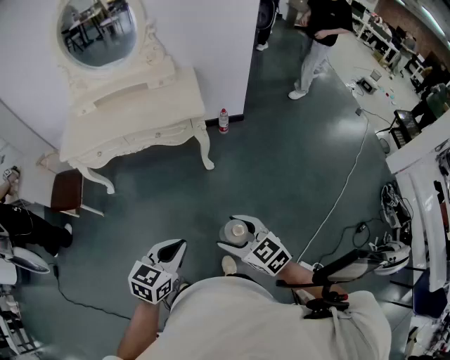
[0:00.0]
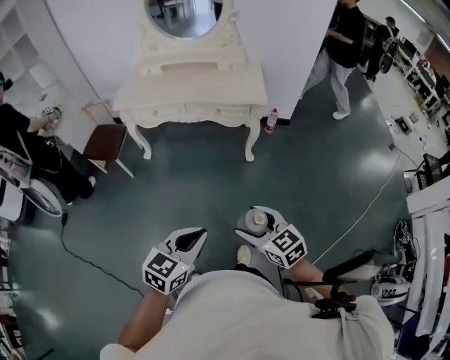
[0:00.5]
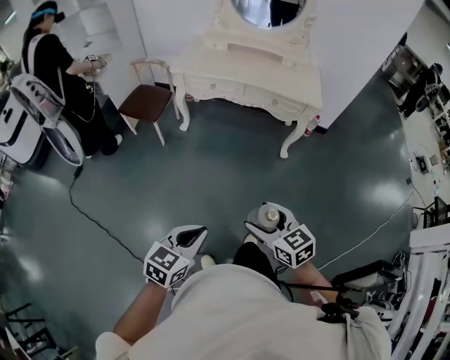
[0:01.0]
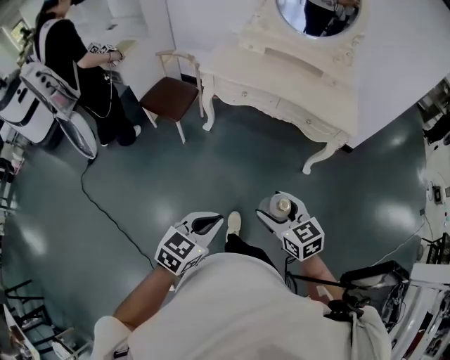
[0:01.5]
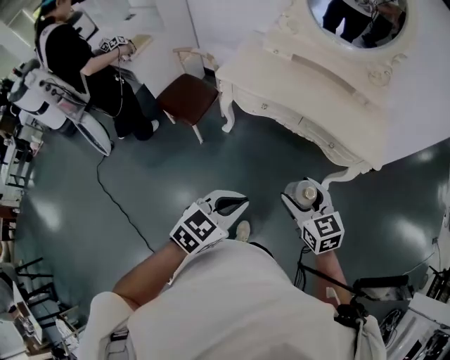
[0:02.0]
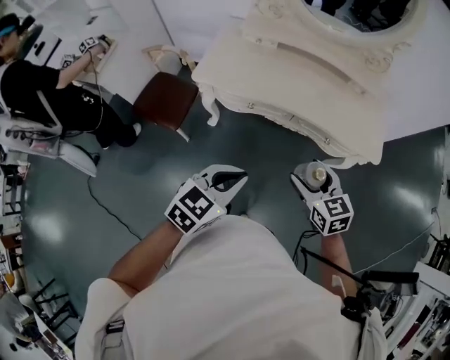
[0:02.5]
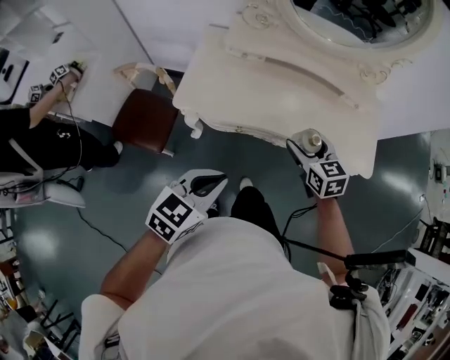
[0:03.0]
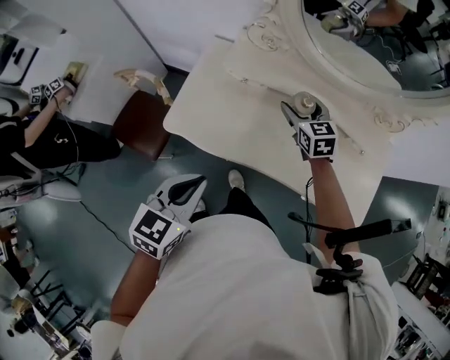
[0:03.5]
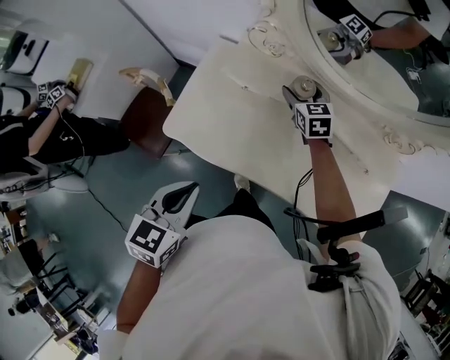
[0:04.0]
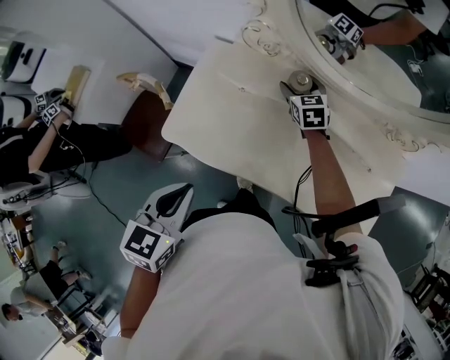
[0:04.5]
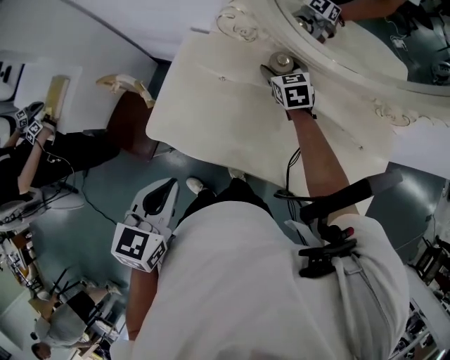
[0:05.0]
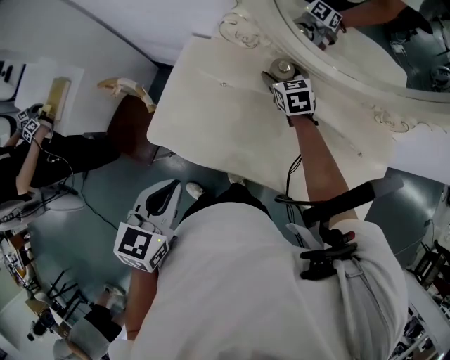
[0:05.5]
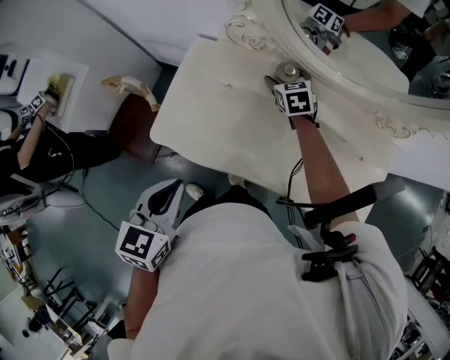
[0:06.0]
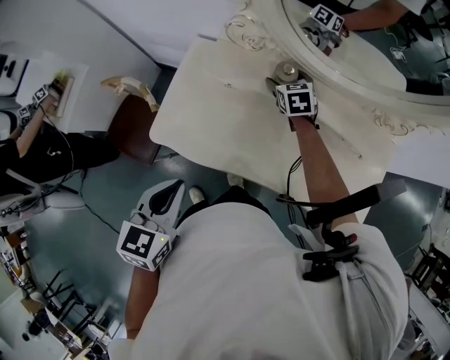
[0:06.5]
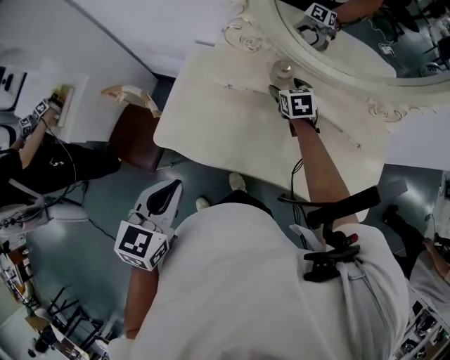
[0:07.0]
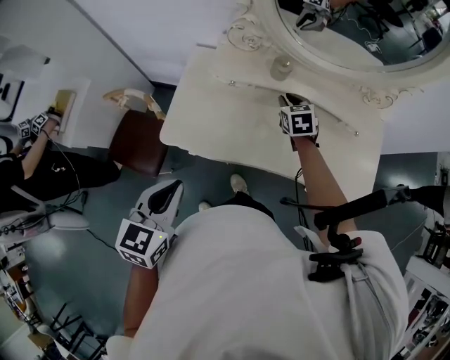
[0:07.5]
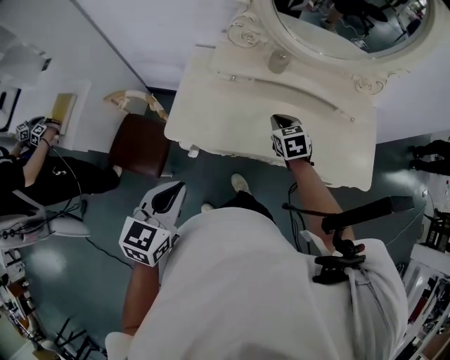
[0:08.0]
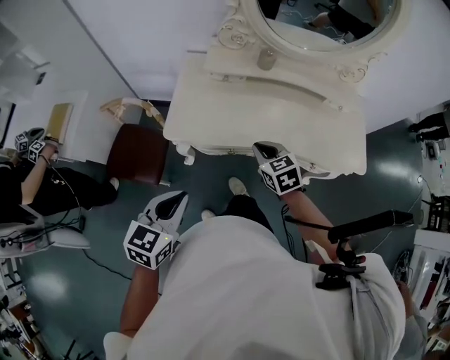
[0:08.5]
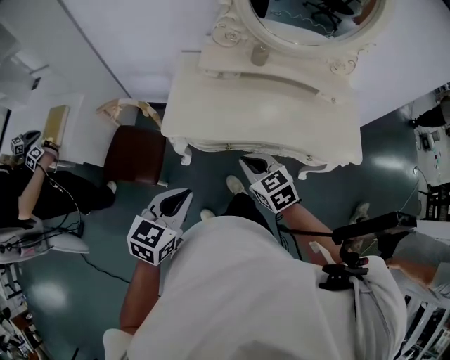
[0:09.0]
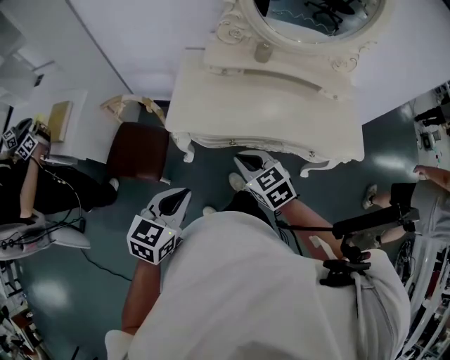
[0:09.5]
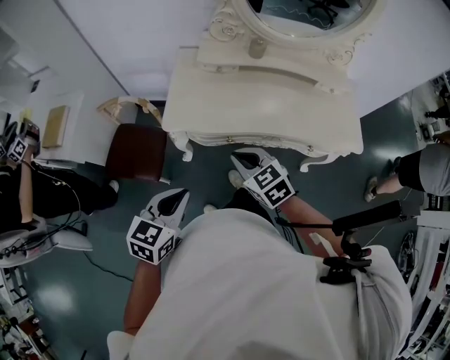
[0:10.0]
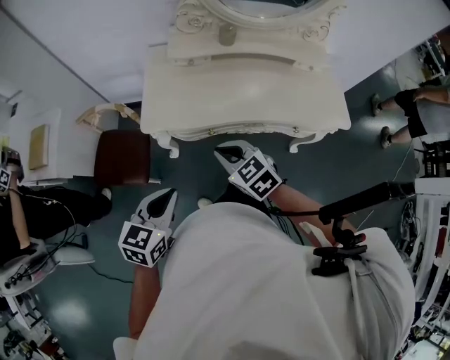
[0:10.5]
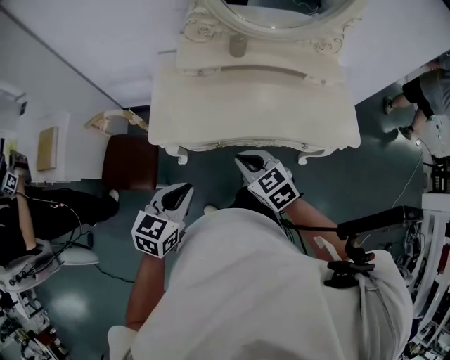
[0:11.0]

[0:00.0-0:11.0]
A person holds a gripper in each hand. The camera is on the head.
0:00.0 to 0:02.0: Both grippers are carried to the left and forward, about 40 cm.
0:02.0 to 0:03.5: Both grippers are carried forward, roughly 60 cm.
0:03.5 to 0:05.5: The right gripper shifts about 15 cm forward and downward; the left gripper travels forward by some 5 cm.
0:05.5 to 0:07.5: The left gripper is displaced backward and to the left by some 10 cm. The right gripper travels backward by about 15 cm, and closes.
0:07.5 to 0:09.0: The left gripper travels backward by approximately 15 cm. Meanwhile the right gripper travels backward by approximately 40 cm.
0:09.0 to 0:11.0: The left gripper moves approximately 5 cm.

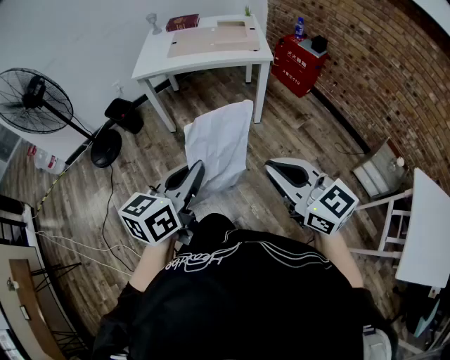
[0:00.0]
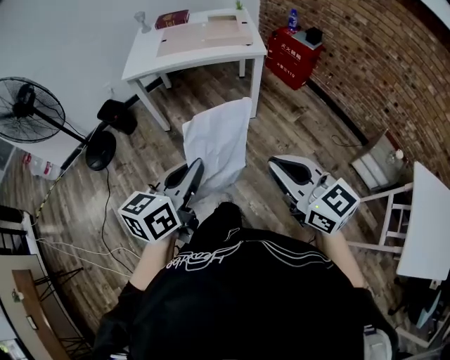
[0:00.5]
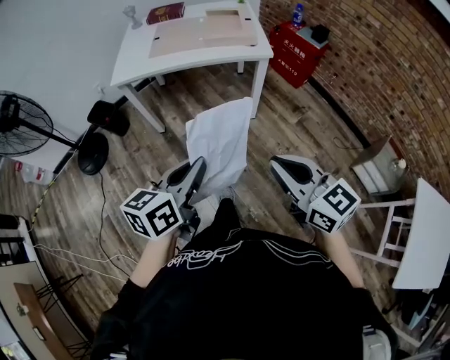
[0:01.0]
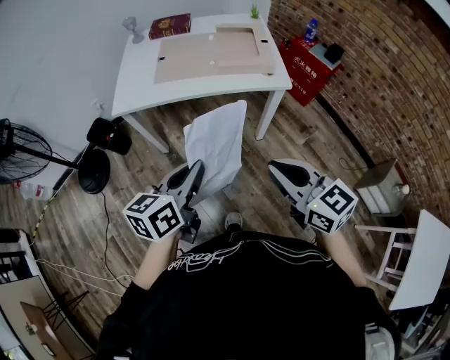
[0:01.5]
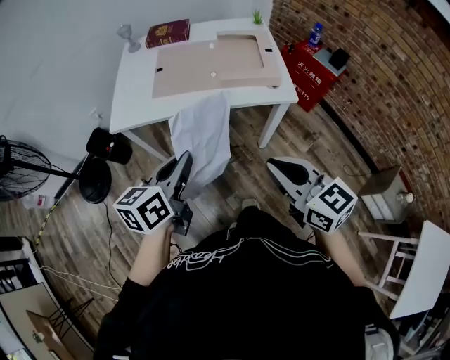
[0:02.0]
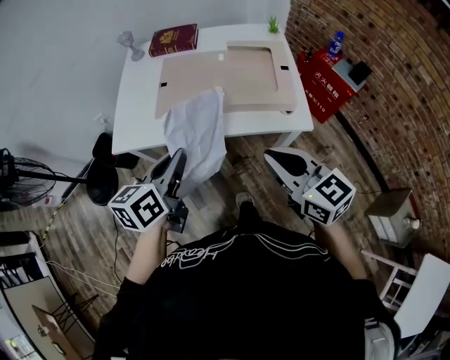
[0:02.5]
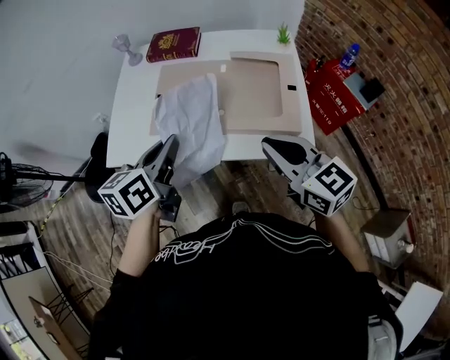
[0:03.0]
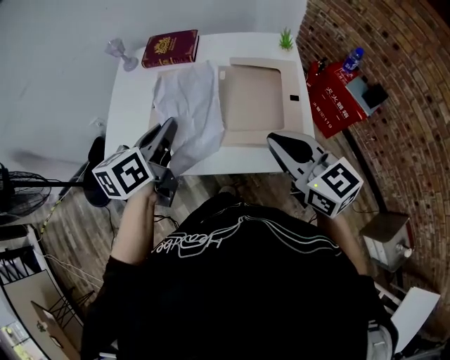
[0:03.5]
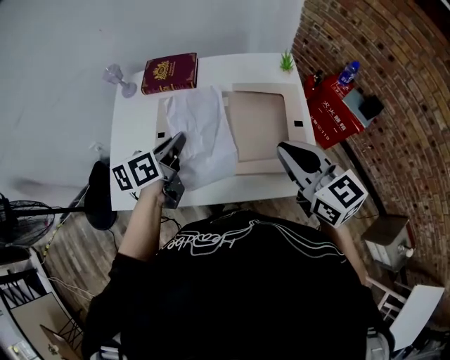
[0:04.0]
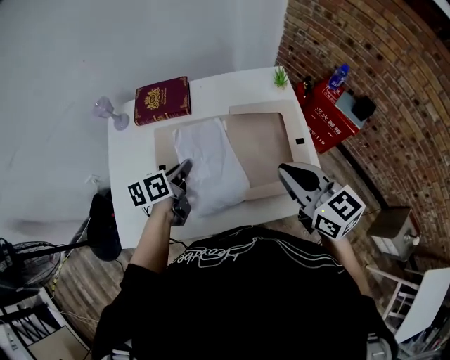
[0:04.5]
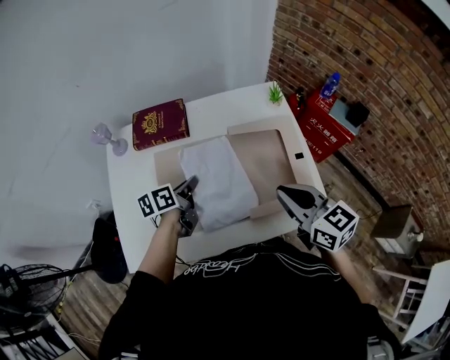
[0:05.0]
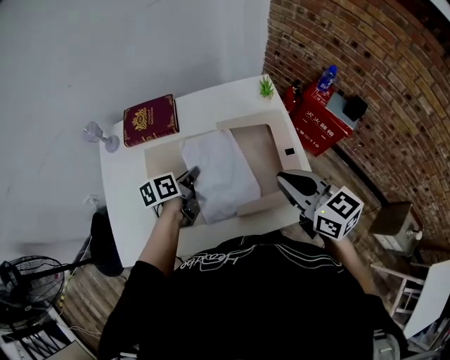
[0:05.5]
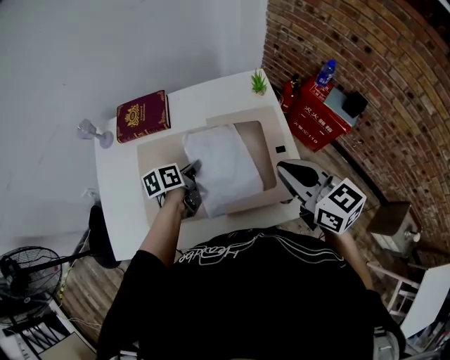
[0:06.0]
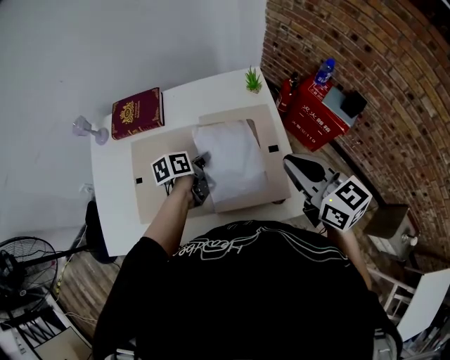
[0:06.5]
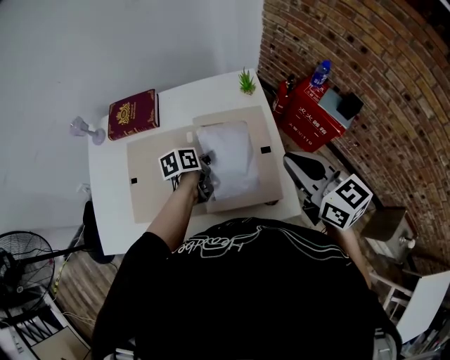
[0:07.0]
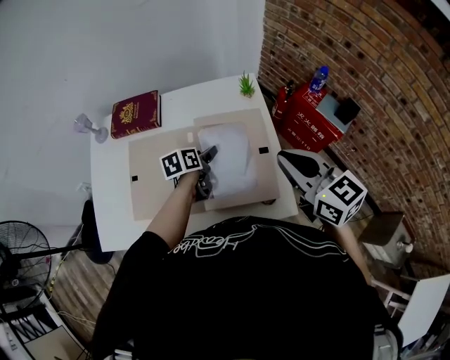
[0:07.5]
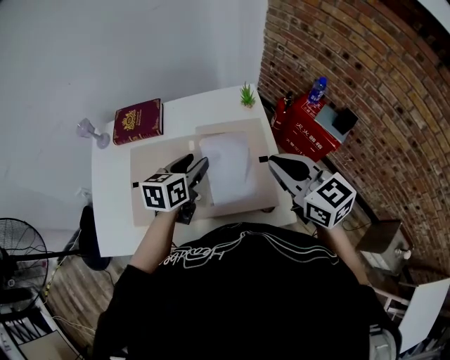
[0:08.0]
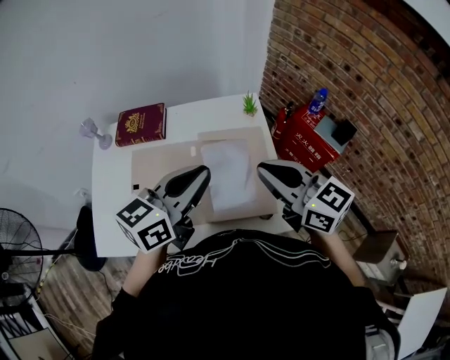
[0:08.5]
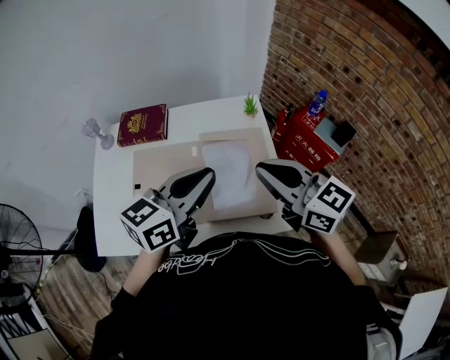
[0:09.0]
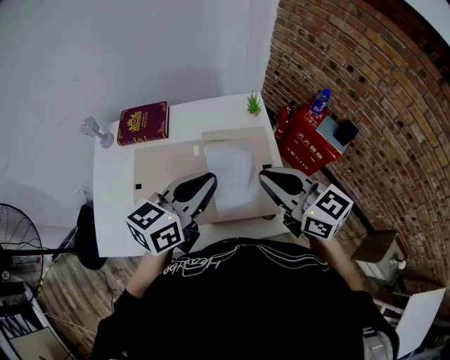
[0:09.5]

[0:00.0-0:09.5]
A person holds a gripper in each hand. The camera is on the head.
0:00.0 to 0:02.0: The two grippers go some 40 cm forward.
0:02.0 to 0:04.0: Both grippers move forward, about 40 cm.
0:04.0 to 0:05.5: The right gripper ends up approximately 5 cm from where it was, while the left gripper shifts approximately 15 cm downward and forward.
0:05.5 to 0:07.5: The grippers both shift to the right by about 10 cm. The left gripper opens its fingers.
0:07.5 to 0:09.5: The left gripper goes about 25 cm upward and backward, turns by about 40 degrees, and closes. Meanwhile the right gripper shifts some 5 cm to the left.

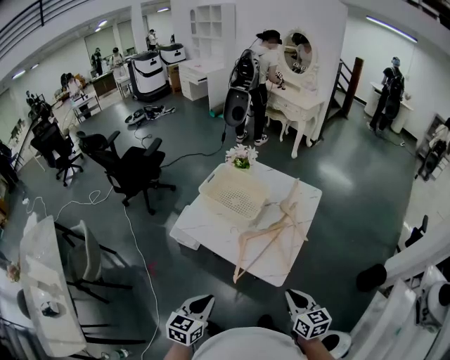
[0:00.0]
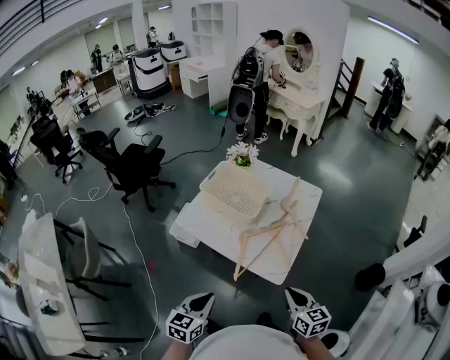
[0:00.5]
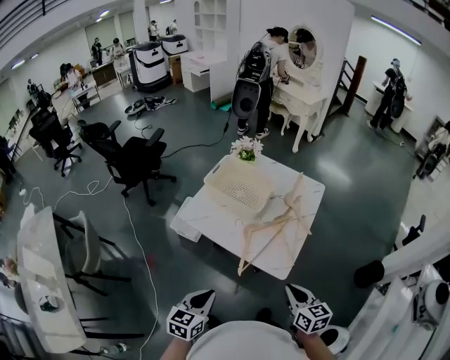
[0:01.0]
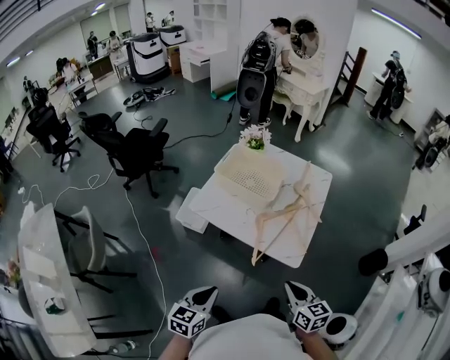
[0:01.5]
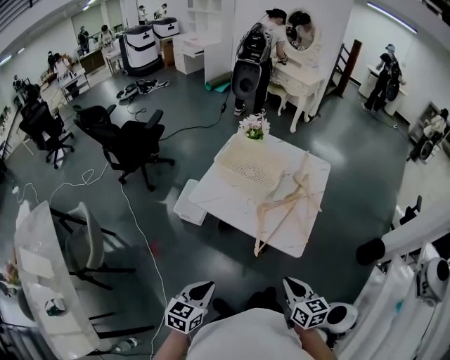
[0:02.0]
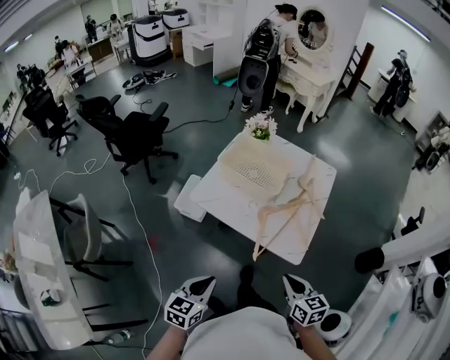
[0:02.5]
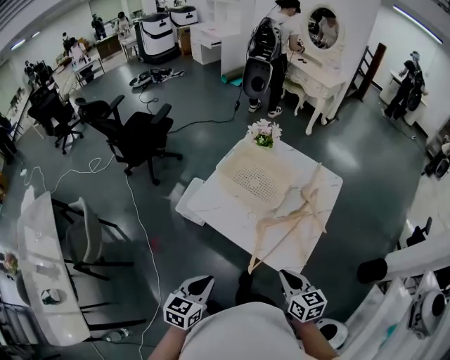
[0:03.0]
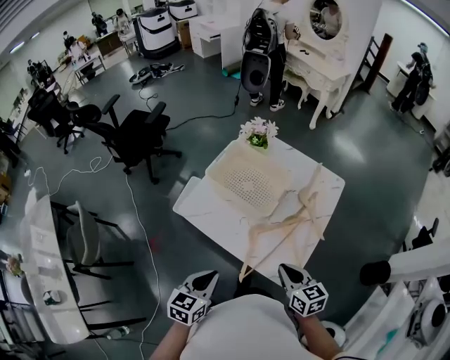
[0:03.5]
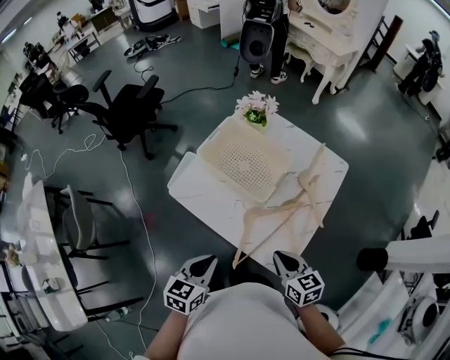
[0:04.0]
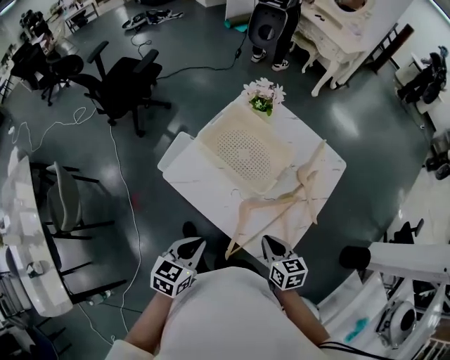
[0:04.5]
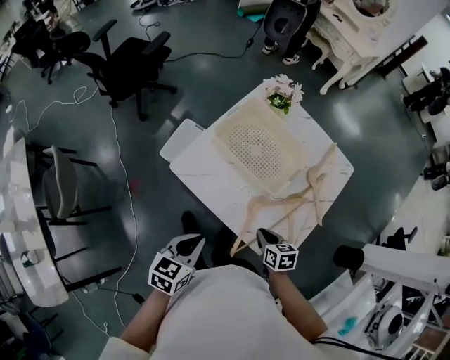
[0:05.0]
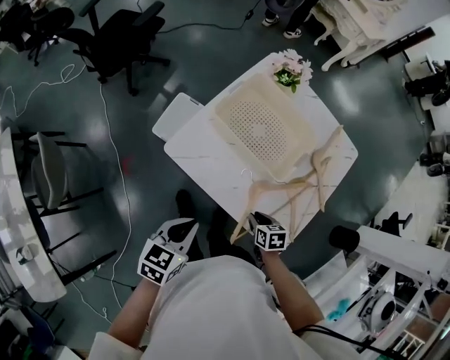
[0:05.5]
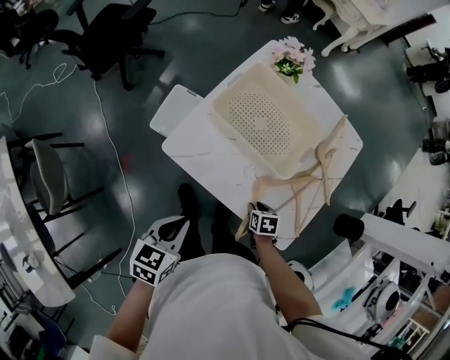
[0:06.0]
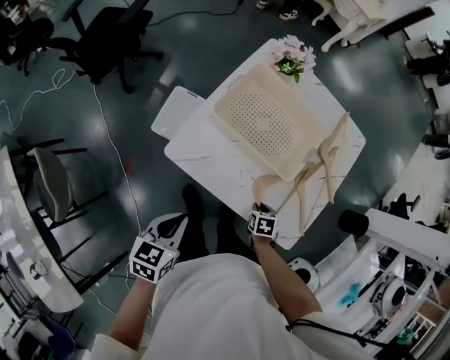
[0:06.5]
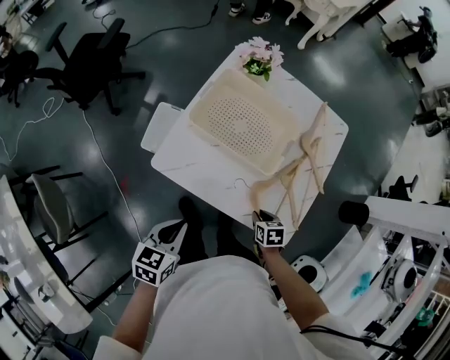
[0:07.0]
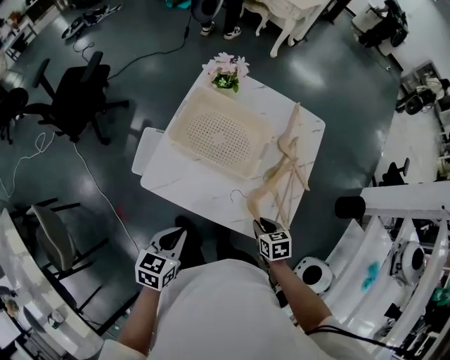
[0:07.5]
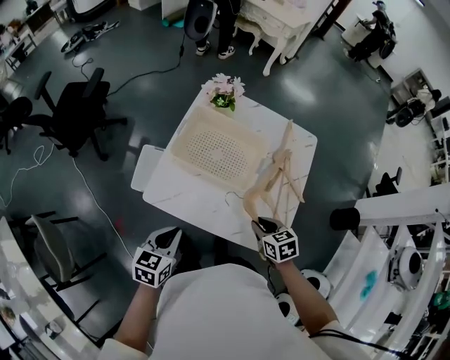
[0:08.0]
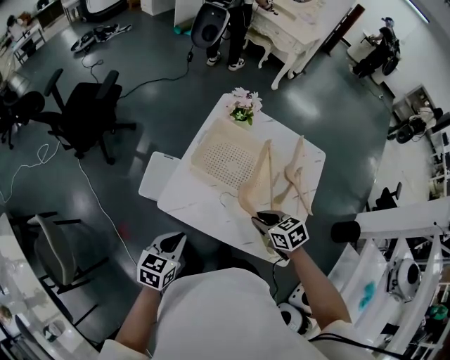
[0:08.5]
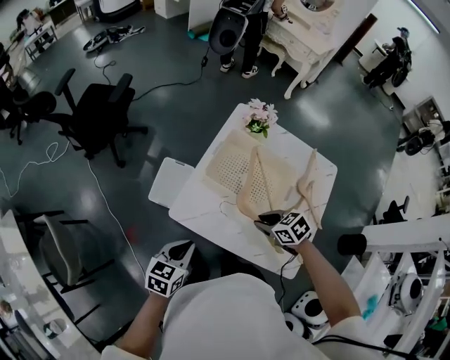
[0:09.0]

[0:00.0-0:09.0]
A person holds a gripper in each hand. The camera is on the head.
0:00.0 to 0:02.0: The right gripper shifts approximately 15 cm to the left and backward, while the left gripper goes about 15 cm to the left.
0:02.0 to 0:04.5: The grippers both shift forward by roughly 25 cm.
0:04.5 to 0:07.0: The left gripper moves about 10 cm, while the right gripper goes some 15 cm downward, and changes its angle by approximately 30 degrees.
0:07.0 to 0:09.0: The right gripper is displaced upward, forward and to the left by about 25 cm, and swivels approximately 40 degrees; the left gripper heads forward and to the left, covering approximately 10 cm.
